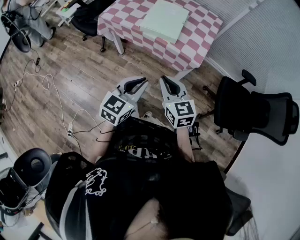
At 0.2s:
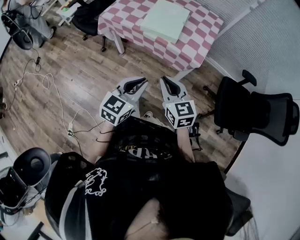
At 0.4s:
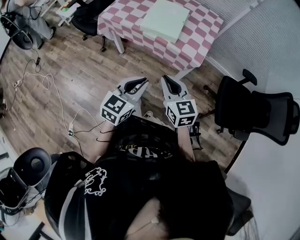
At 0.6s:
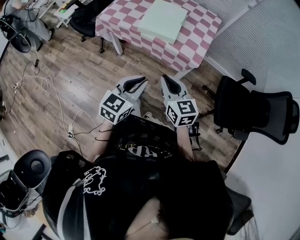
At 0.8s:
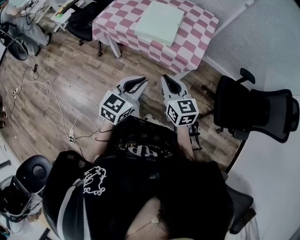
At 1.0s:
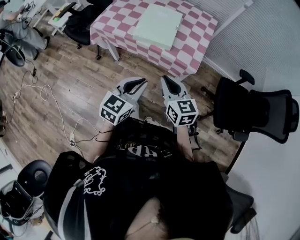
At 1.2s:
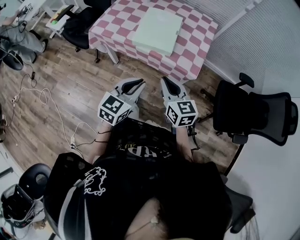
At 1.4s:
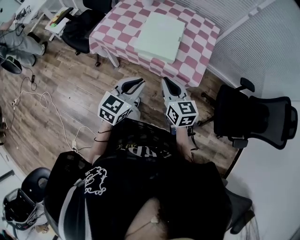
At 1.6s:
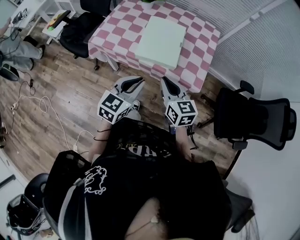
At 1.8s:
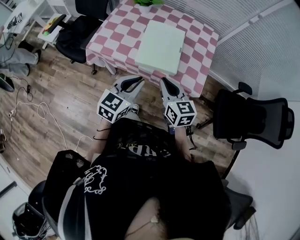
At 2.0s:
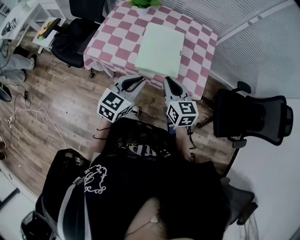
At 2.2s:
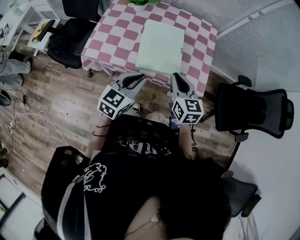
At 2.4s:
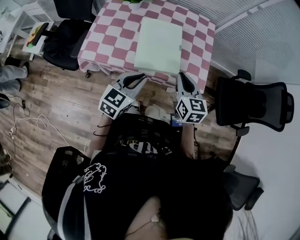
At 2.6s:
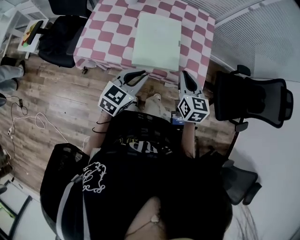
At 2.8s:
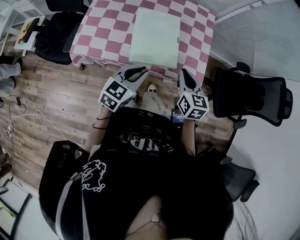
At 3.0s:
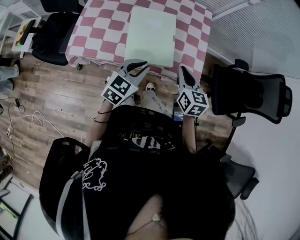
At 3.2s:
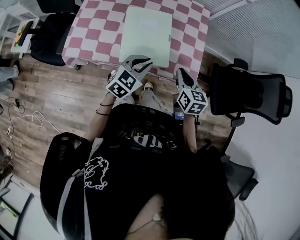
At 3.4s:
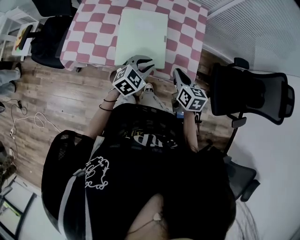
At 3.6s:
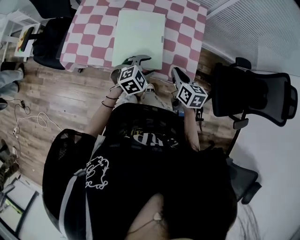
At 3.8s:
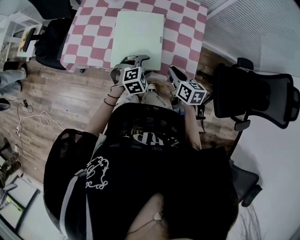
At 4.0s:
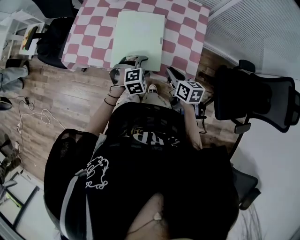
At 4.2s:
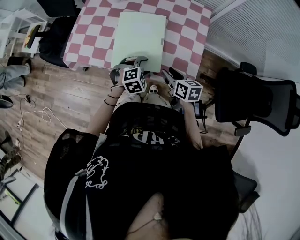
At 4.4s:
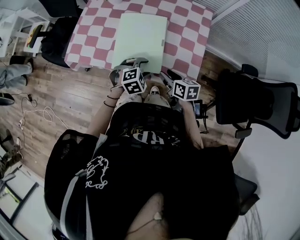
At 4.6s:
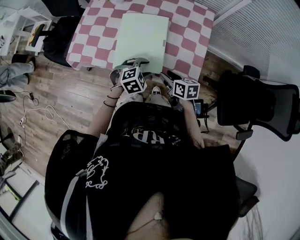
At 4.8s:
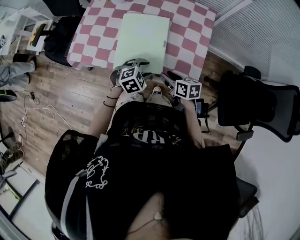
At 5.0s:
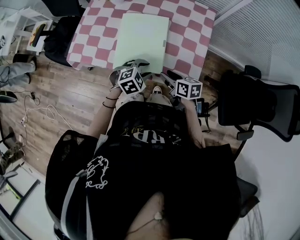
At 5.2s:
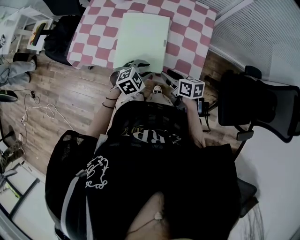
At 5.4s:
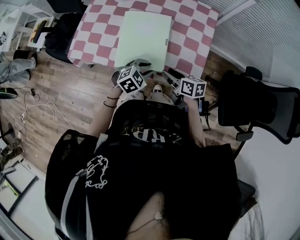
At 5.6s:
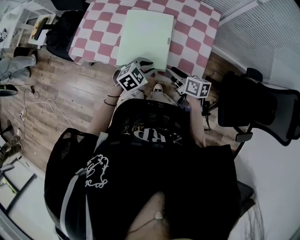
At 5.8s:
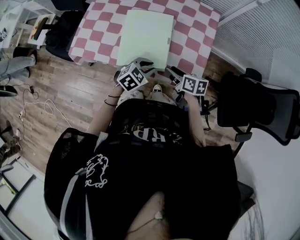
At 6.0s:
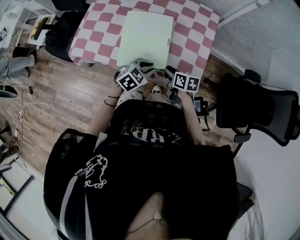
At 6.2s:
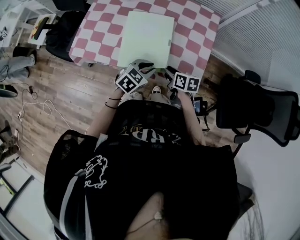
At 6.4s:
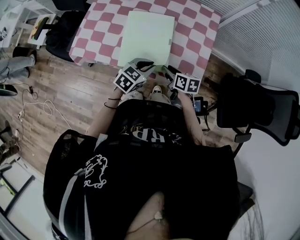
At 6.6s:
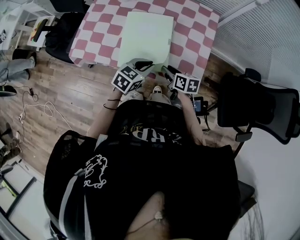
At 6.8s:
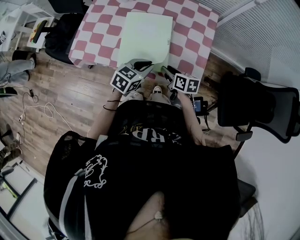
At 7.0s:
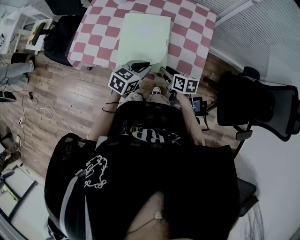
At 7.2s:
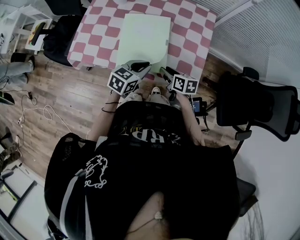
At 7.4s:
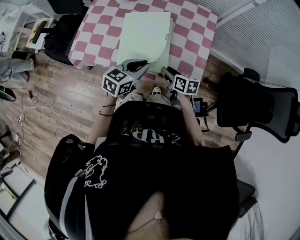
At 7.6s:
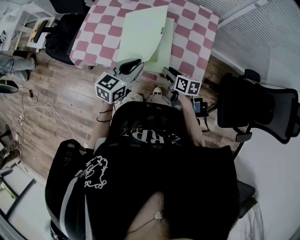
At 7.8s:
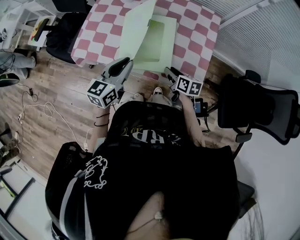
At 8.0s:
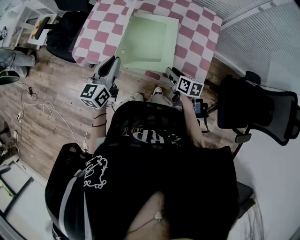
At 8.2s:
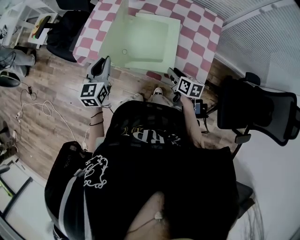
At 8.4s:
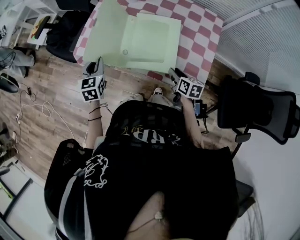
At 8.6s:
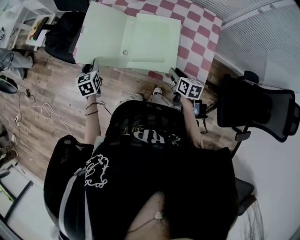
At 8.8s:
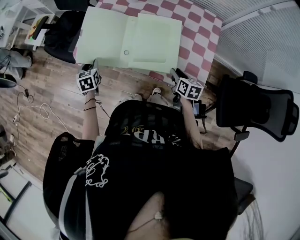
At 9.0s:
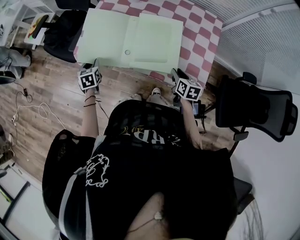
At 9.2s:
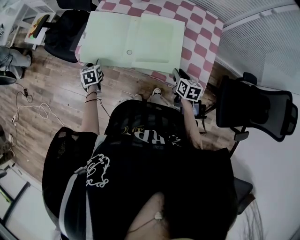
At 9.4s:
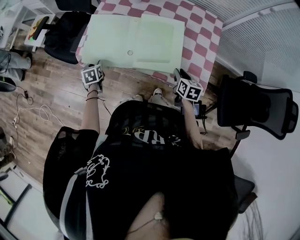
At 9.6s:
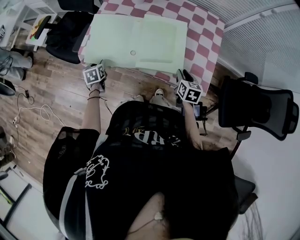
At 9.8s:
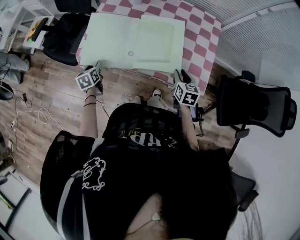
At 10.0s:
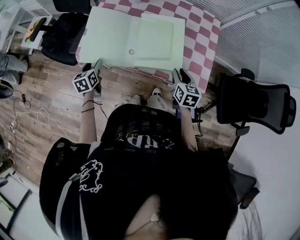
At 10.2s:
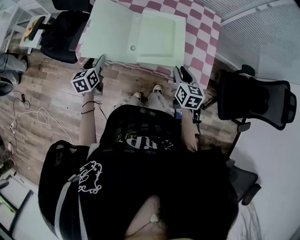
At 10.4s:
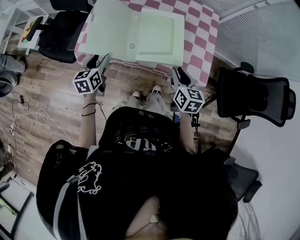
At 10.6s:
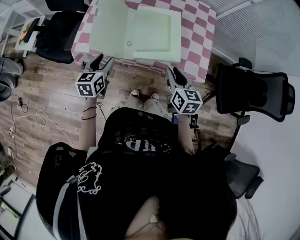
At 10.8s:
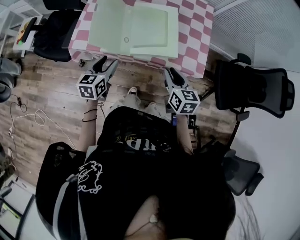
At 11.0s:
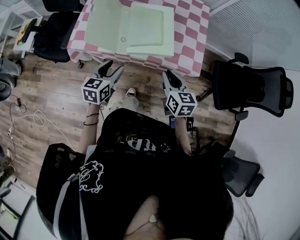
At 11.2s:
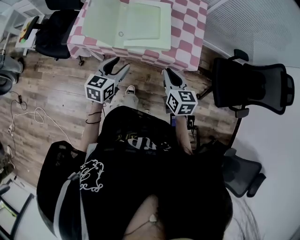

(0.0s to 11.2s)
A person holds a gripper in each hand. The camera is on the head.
0.0s - 1.6s: Both grippers move forward, about 20 cm.
1.6s - 3.2s: The left gripper moves forward and downward, some 20 cm, and rotates some 30 degrees. Meanwhile the right gripper travels forward, to the right and downward by about 15 cm, and changes its angle by about 30 degrees.
3.2s - 4.8s: The left gripper goes roughly 10 cm downward and to the right, turns by about 30 degrees, and opens up; the right gripper shifts about 10 cm downward, changes its angle by about 40 degrees, and opens.
4.8s - 6.4s: The left gripper rotates roughly 30 degrees, and closes up.
6.4s - 8.0s: The left gripper moves to the left and upward, about 20 cm, and changes its angle by some 50 degrees.
8.0s - 9.6s: The right gripper swivels approximately 30 degrees. Meanwhile the left gripper heads downward and to the left, covering roughly 30 cm, and tips its fingers downward by some 40 degrees.
9.6s - 11.2s: The right gripper travels backward and upward by some 20 cm, while the left gripper goes some 30 cm to the right, upward and backward, and changes its angle by roughly 50 degrees.

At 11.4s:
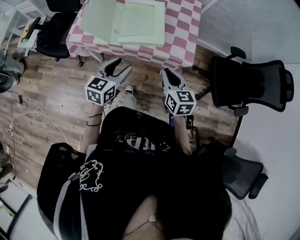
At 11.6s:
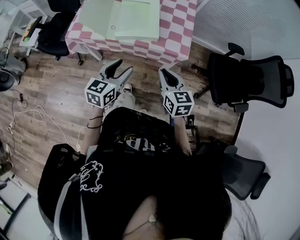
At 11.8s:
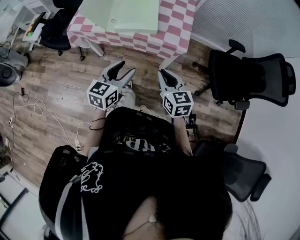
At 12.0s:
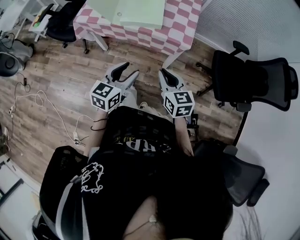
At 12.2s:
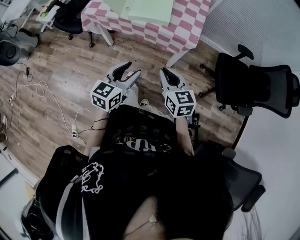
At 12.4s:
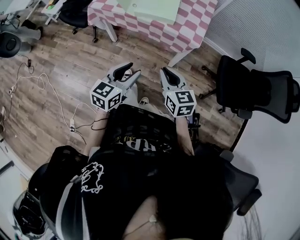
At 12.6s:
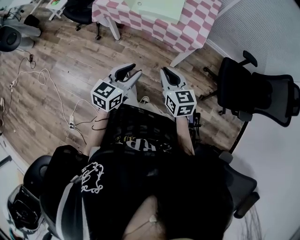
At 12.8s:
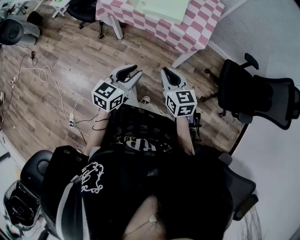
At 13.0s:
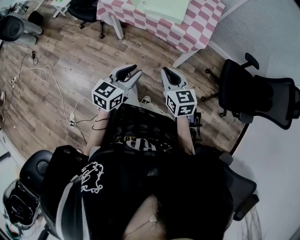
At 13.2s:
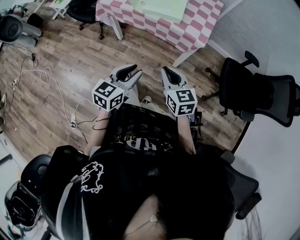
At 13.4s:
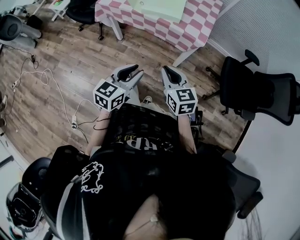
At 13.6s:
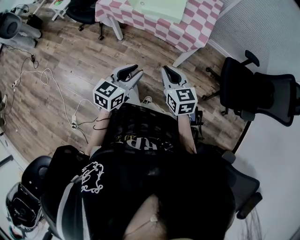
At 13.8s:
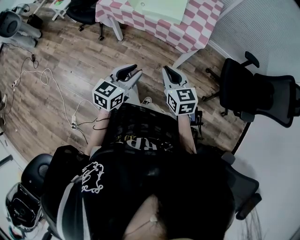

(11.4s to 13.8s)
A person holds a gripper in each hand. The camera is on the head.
11.4s - 12.6s: Both grippers travel together backward, roughly 20 cm. The right gripper rotates roughly 20 degrees.
12.6s - 13.8s: The grippers stay close to where they were, moving slightly.

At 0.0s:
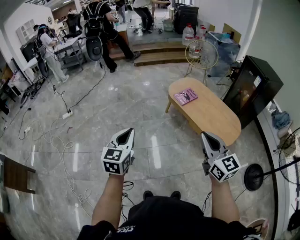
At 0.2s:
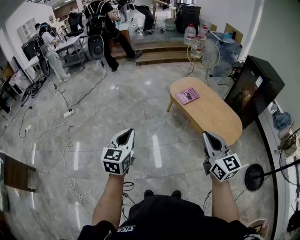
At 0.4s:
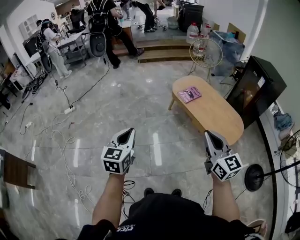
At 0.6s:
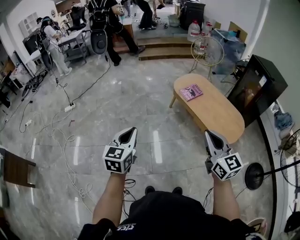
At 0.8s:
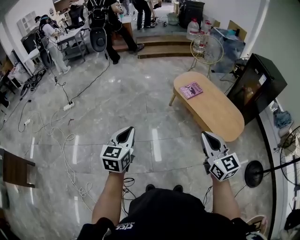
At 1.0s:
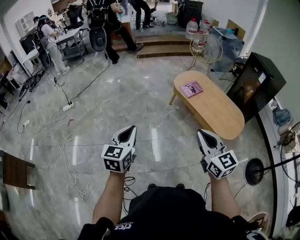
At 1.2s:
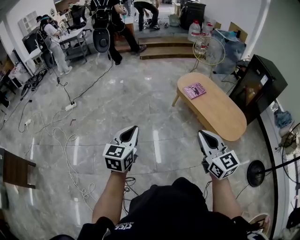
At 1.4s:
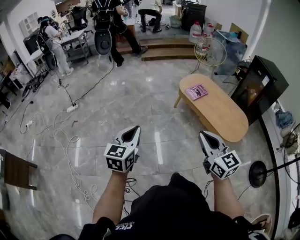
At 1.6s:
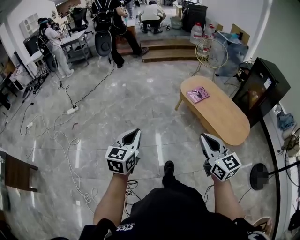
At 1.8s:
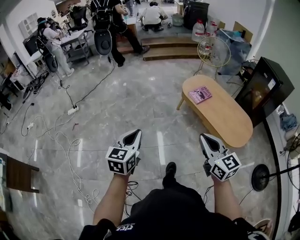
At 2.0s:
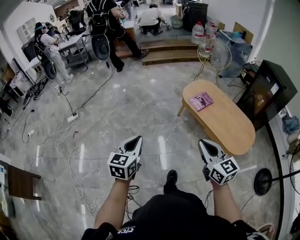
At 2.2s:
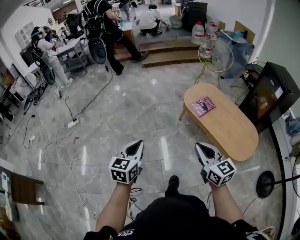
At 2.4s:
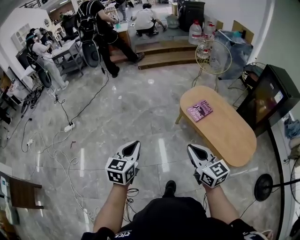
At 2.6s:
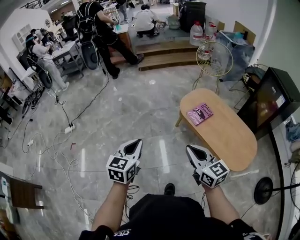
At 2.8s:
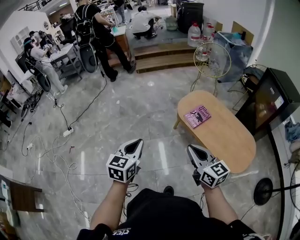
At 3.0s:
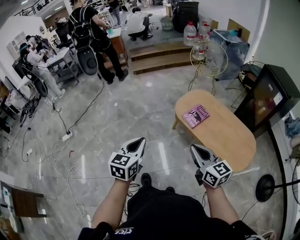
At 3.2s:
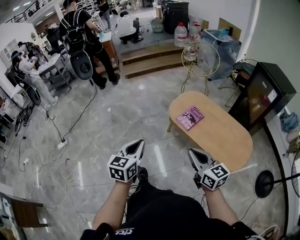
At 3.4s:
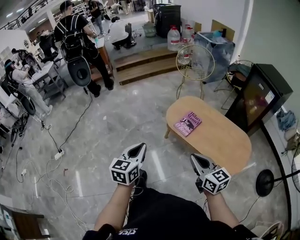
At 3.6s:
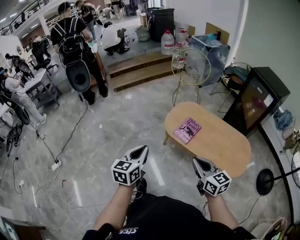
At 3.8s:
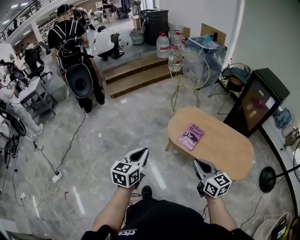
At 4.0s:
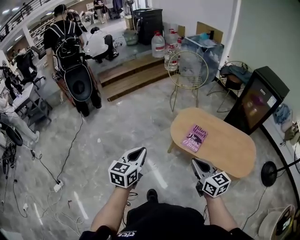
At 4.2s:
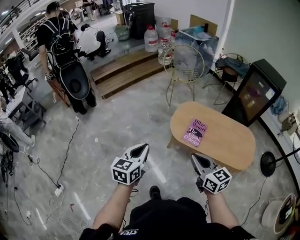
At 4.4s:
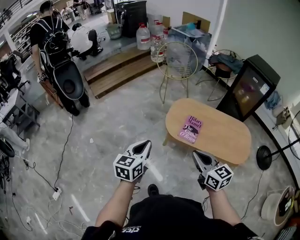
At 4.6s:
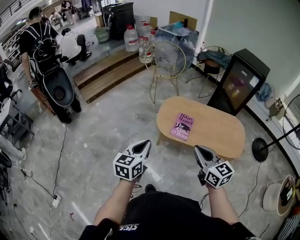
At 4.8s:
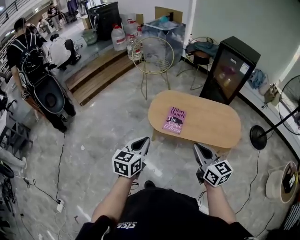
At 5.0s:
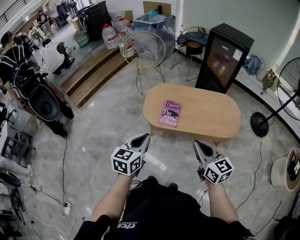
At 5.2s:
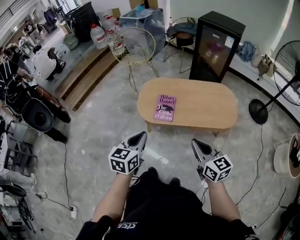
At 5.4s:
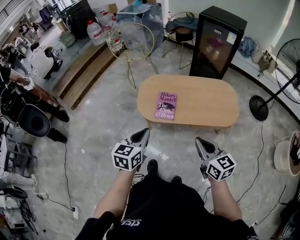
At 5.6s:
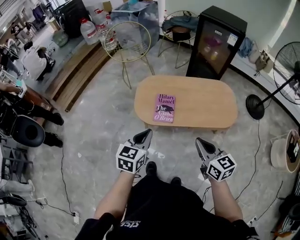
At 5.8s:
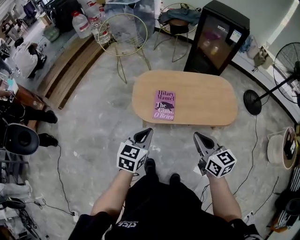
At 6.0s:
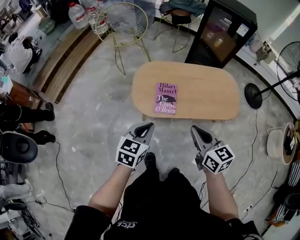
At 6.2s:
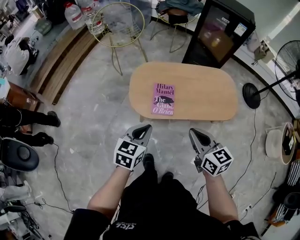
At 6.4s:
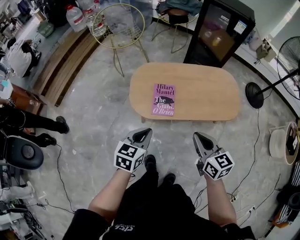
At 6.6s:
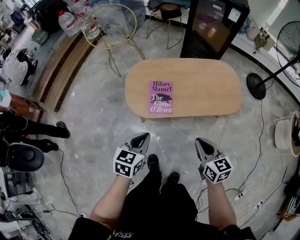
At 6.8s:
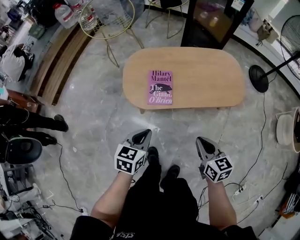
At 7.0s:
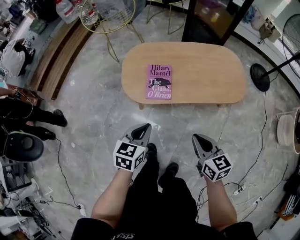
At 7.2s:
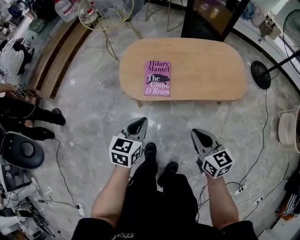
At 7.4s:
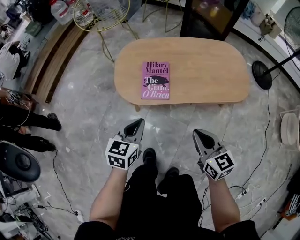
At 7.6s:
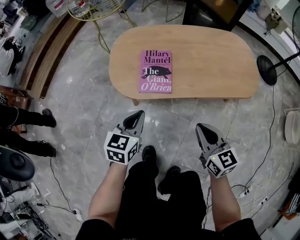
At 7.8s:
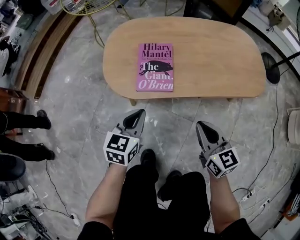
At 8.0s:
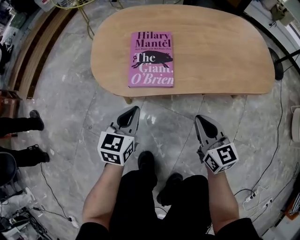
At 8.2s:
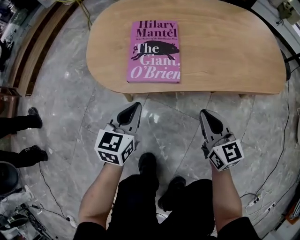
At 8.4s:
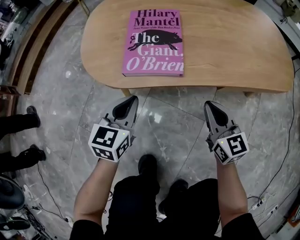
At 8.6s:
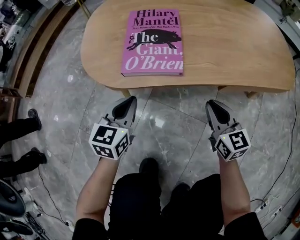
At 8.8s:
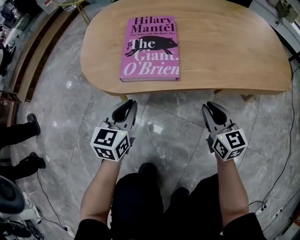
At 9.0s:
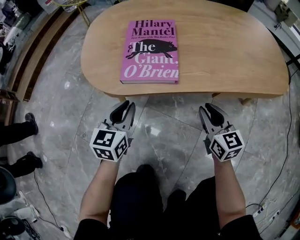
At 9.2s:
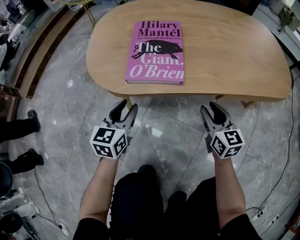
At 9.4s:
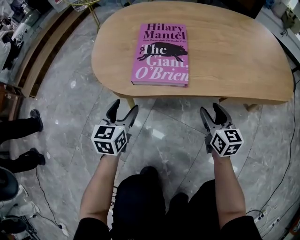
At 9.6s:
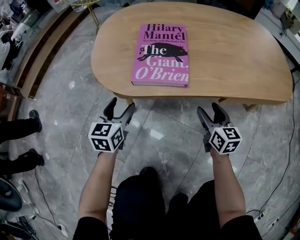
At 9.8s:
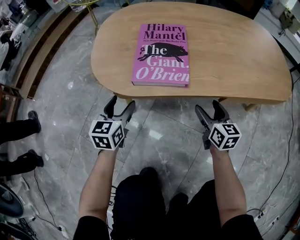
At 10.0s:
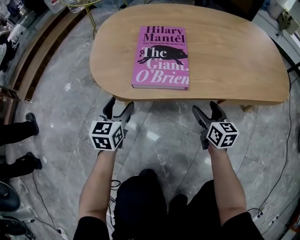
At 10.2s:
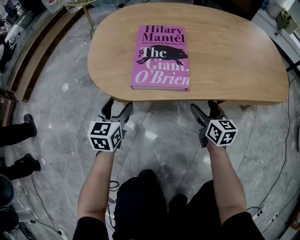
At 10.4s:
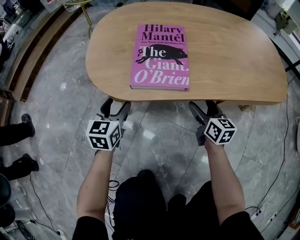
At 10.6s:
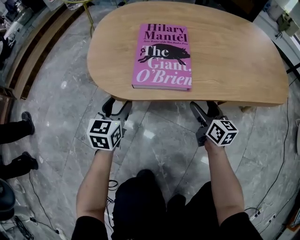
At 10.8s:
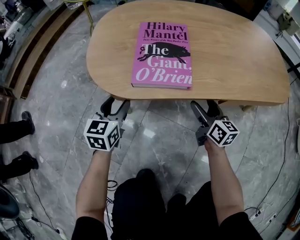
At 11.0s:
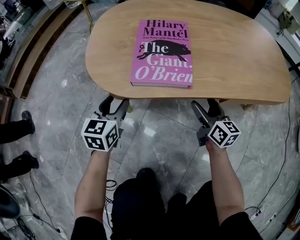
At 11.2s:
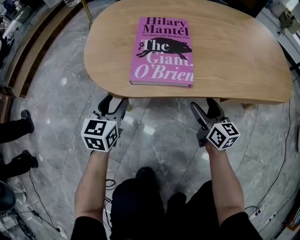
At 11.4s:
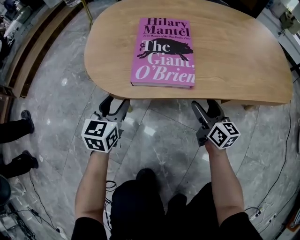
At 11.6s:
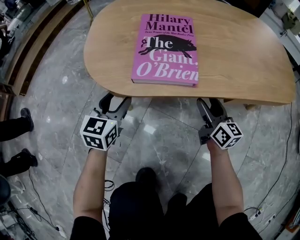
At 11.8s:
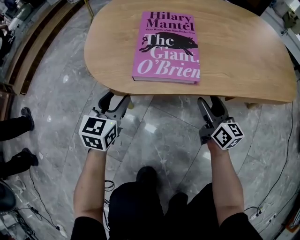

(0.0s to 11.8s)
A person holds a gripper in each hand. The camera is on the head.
0.0s - 1.4s: Both grippers move to the left, some 10 cm.
1.4s - 3.0s: The left gripper goes roughly 35 cm forward and to the right. The right gripper shifts some 30 cm forward.
3.0s - 4.4s: The right gripper ends up roughly 25 cm from where it was, and changes its angle by about 30 degrees. Meanwhile the left gripper shifts by about 30 cm, and rotates approximately 30 degrees.
4.4s - 6.0s: The right gripper shifts by some 15 cm, and turns by some 30 degrees. The left gripper shifts by approximately 25 cm, and rotates some 30 degrees.
6.0s - 7.4s: The right gripper heads downward and to the right, covering some 20 cm, while the left gripper goes some 20 cm downward.
7.4s - 8.8s: The two grippers go about 35 cm downward.
8.8s - 10.4s: The left gripper shifts some 10 cm to the left and forward, and opens its fingers. The right gripper moves forward and downward, approximately 10 cm, and opens up.
10.4s - 11.8s: There are only small adjustments of the grippers.
